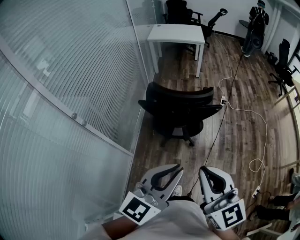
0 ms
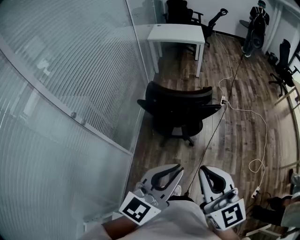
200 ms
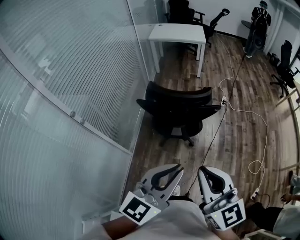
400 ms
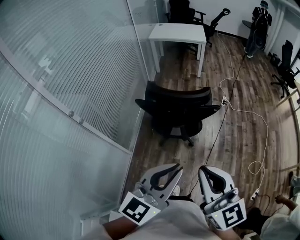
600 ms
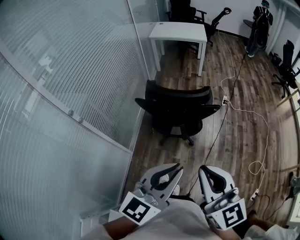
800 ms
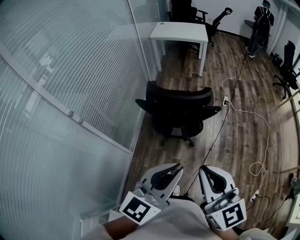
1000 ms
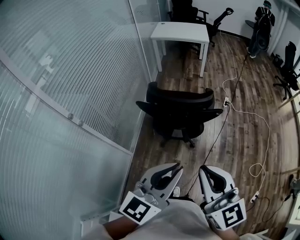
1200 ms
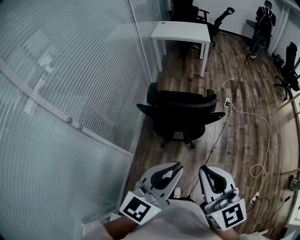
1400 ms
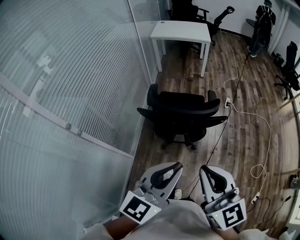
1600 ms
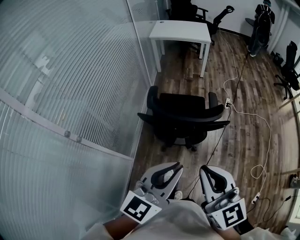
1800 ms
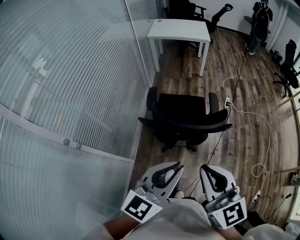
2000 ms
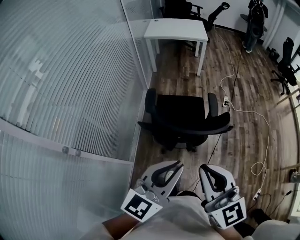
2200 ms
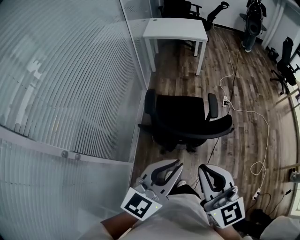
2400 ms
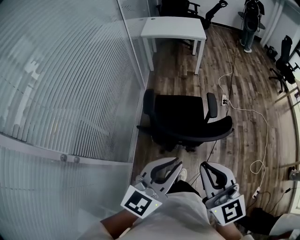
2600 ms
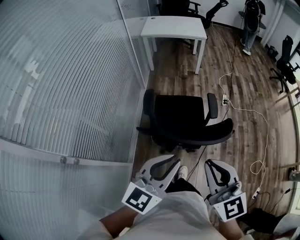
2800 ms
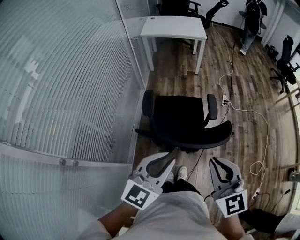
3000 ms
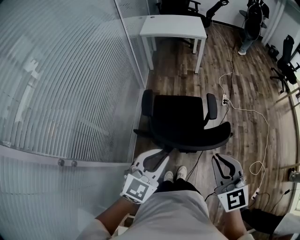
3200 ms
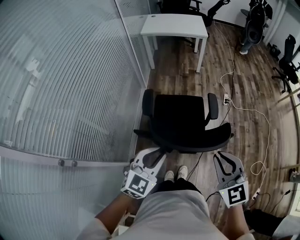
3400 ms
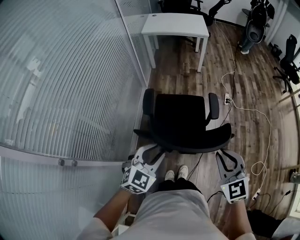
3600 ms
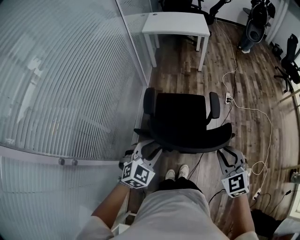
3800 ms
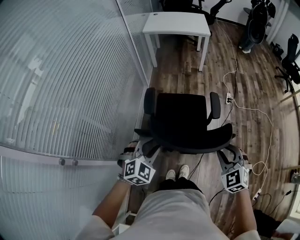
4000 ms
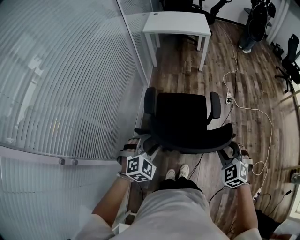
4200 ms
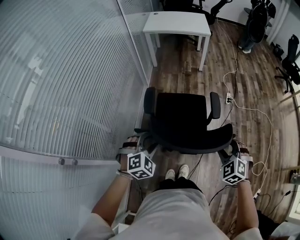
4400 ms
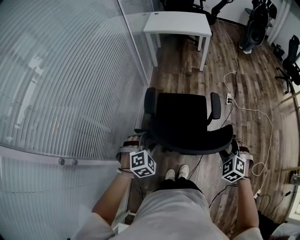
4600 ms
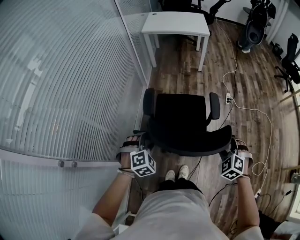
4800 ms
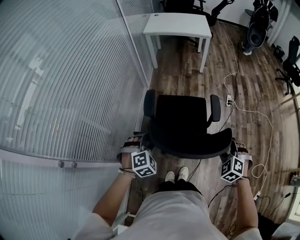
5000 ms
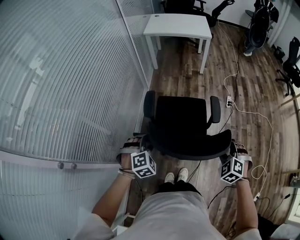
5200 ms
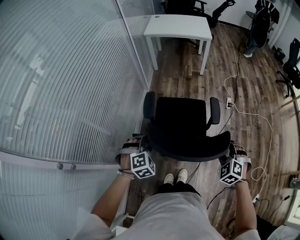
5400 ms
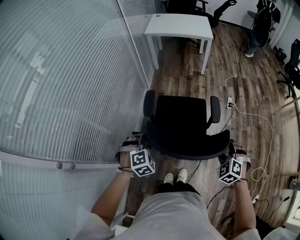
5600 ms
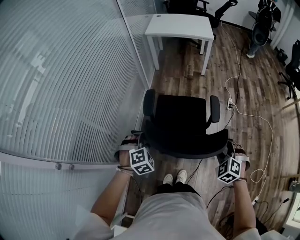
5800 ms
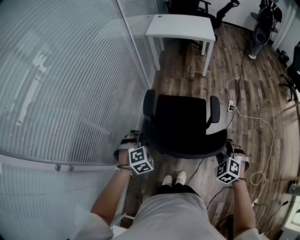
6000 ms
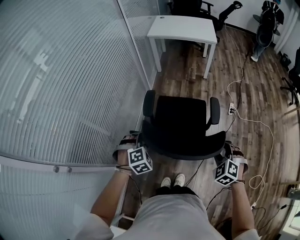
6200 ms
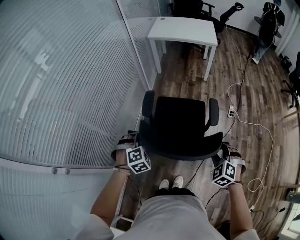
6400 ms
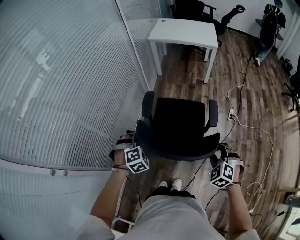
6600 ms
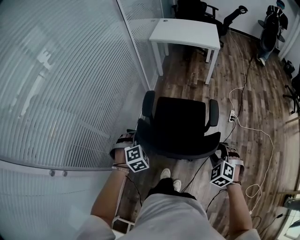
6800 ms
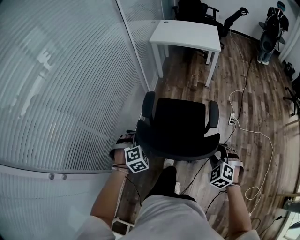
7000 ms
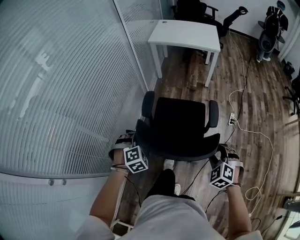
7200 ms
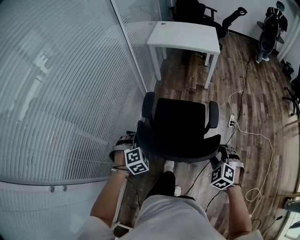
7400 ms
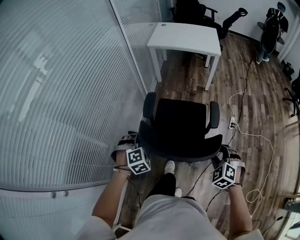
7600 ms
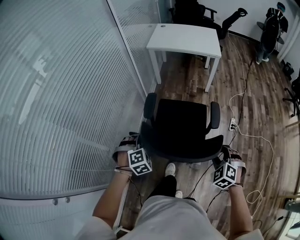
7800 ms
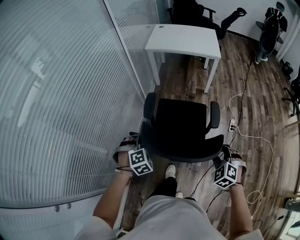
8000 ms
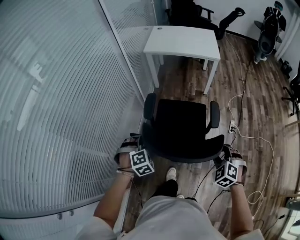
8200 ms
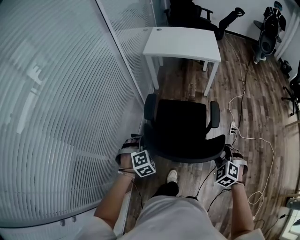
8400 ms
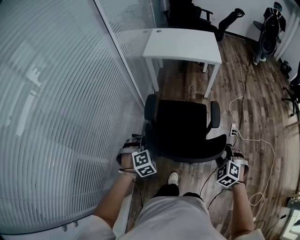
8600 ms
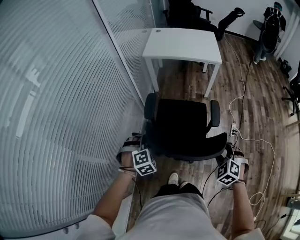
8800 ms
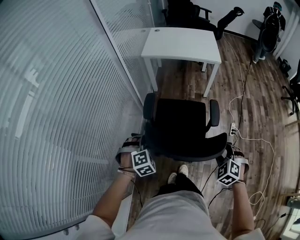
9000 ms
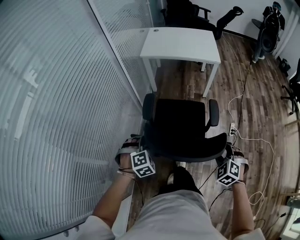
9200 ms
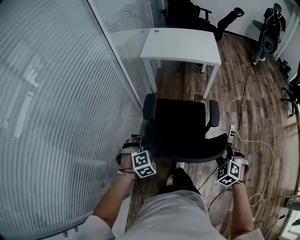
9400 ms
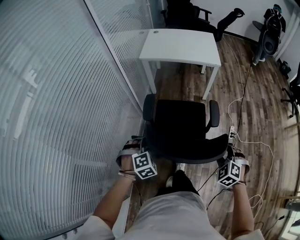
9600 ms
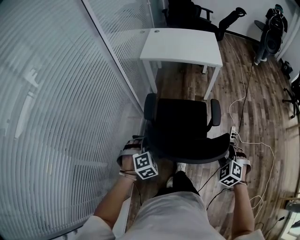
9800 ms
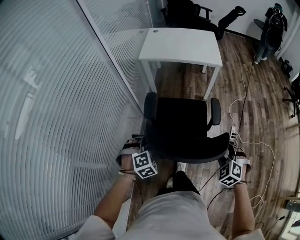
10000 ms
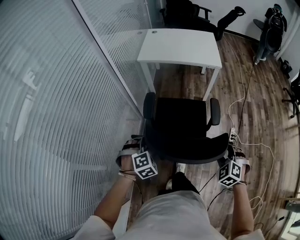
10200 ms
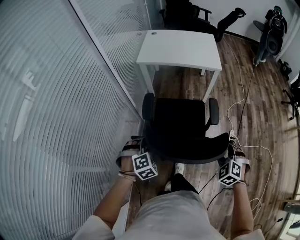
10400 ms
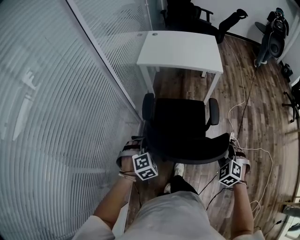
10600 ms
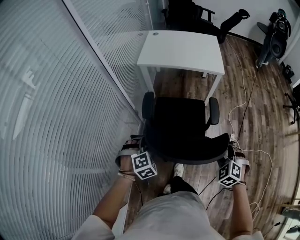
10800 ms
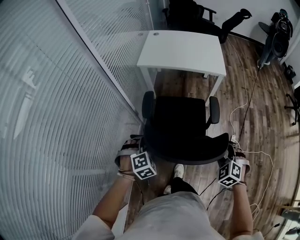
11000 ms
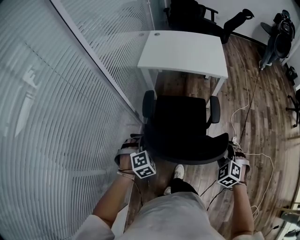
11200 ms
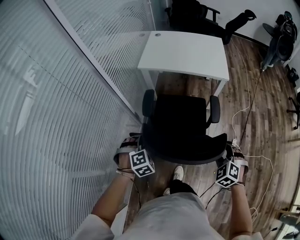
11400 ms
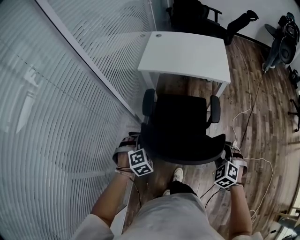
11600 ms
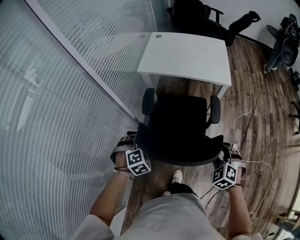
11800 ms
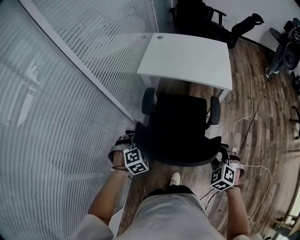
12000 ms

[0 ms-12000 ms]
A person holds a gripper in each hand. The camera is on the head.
0 ms to 1600 ms: Both grippers move forward, roughly 10 cm.
1600 ms to 3000 ms: The right gripper travels forward by approximately 15 cm. Meanwhile the left gripper goes approximately 20 cm forward and to the left.
3000 ms to 4400 ms: The right gripper heads downward, forward and to the right, covering roughly 20 cm, tilts its fingers about 30 degrees downward, and opens up; the left gripper travels downward and forward by approximately 20 cm, points its fingers about 40 degrees further downward, and opens its fingers.
4400 ms to 6000 ms: The two grippers go roughly 5 cm forward.
6000 ms to 7600 ms: Both grippers travel together forward, approximately 15 cm.
7600 ms to 9000 ms: The grippers both shift forward by roughly 15 cm.
9000 ms to 10400 ms: The two grippers go some 10 cm forward.
10400 ms to 12000 ms: Both grippers move forward, approximately 20 cm.

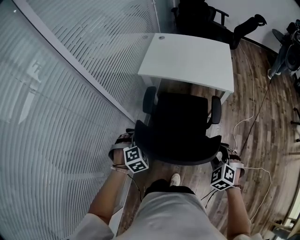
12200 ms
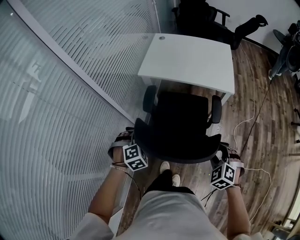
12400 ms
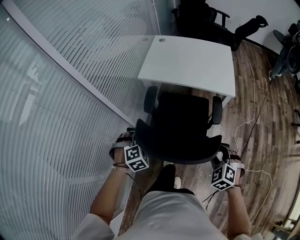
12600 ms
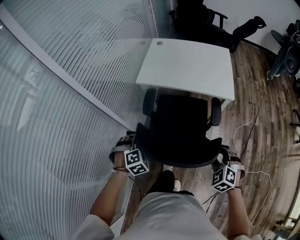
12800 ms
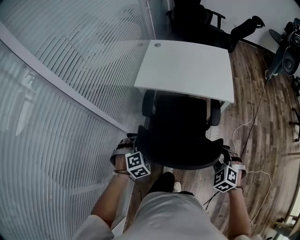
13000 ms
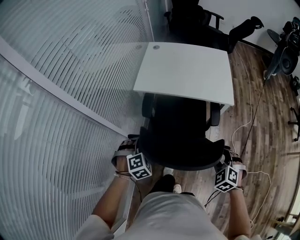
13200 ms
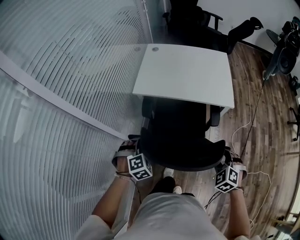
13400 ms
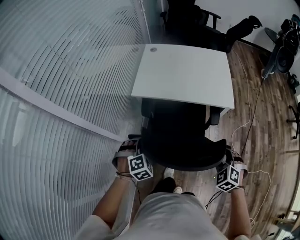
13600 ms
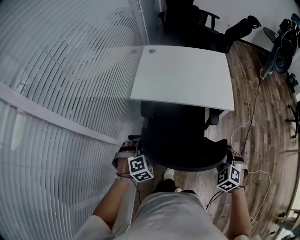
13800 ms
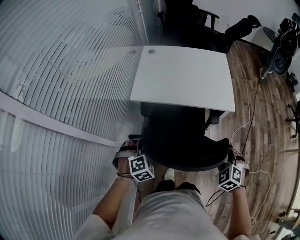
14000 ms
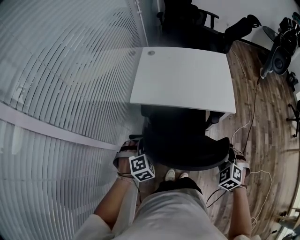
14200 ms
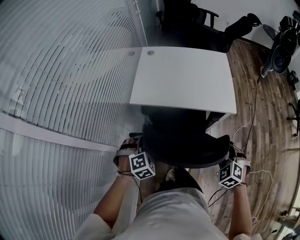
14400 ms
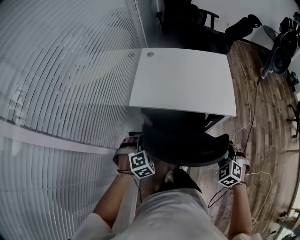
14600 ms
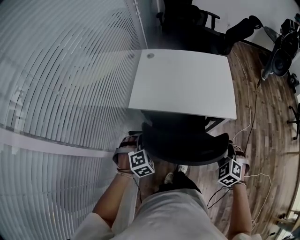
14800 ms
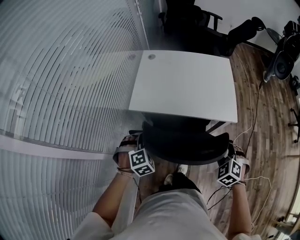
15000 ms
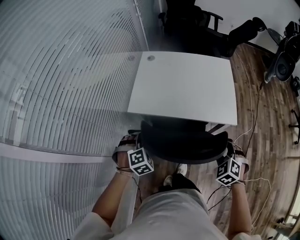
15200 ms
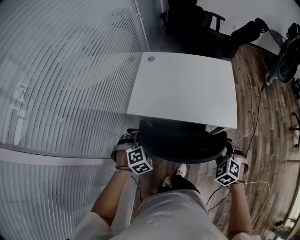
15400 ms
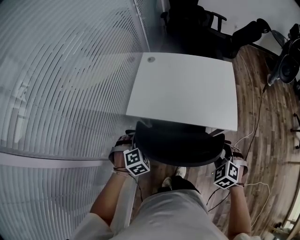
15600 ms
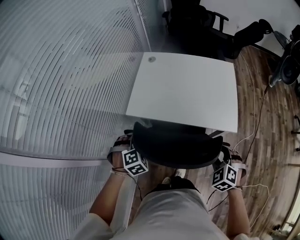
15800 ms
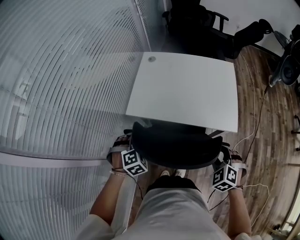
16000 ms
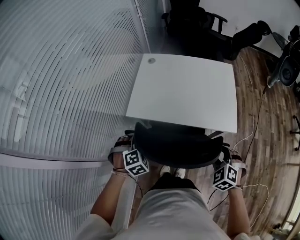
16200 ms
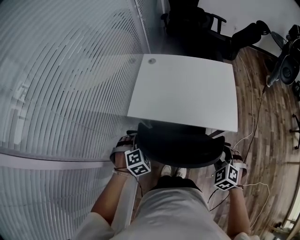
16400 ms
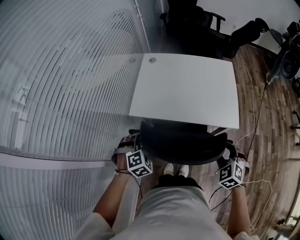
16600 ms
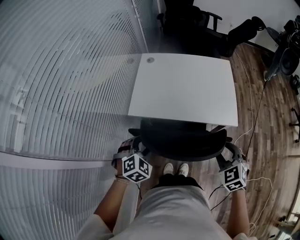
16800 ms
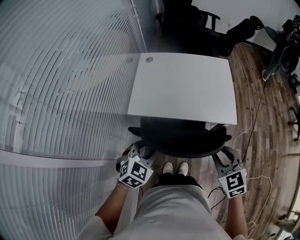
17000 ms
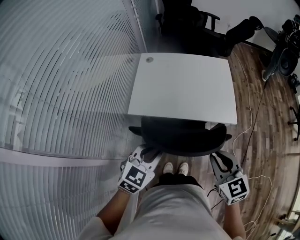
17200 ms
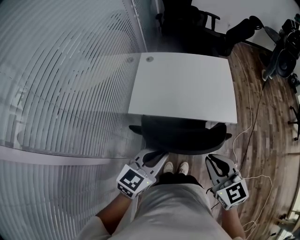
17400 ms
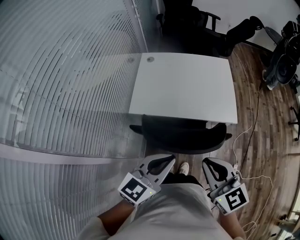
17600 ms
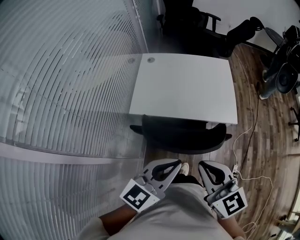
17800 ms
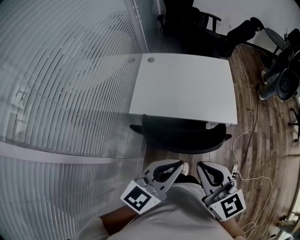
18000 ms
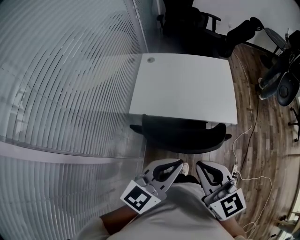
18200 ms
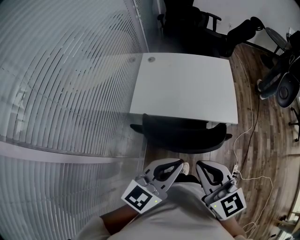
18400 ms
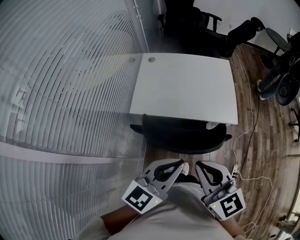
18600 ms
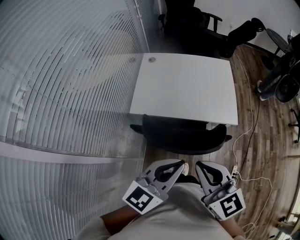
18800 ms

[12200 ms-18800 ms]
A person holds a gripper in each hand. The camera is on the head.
12200 ms to 13800 ms: Both grippers travel together forward, roughly 20 cm.
13800 ms to 15400 ms: The two grippers go approximately 15 cm forward.
15400 ms to 17200 ms: The left gripper moves upward and backward, some 15 cm, rotates approximately 50 degrees, and closes. Meanwhile the right gripper travels upward, to the left and backward by about 15 cm, rotates about 50 degrees, and closes.
17200 ms to 18800 ms: The left gripper shifts some 15 cm upward, to the right and backward, and rotates about 30 degrees; the right gripper heads upward and to the left, covering some 10 cm.

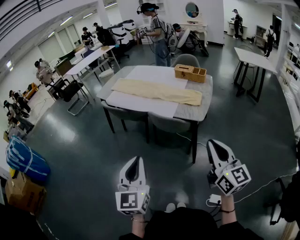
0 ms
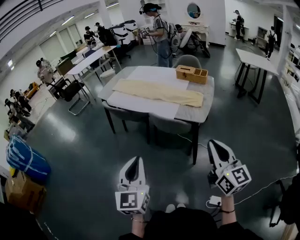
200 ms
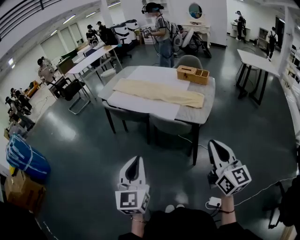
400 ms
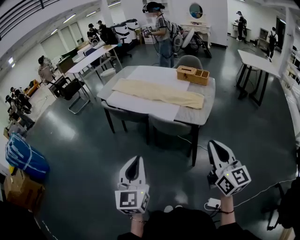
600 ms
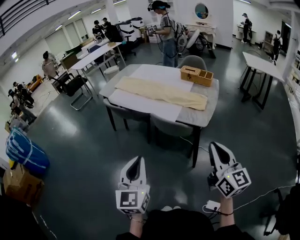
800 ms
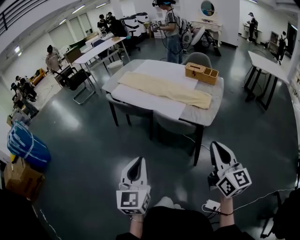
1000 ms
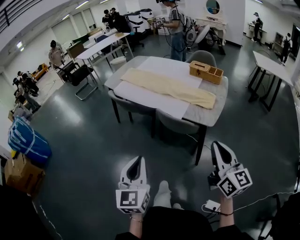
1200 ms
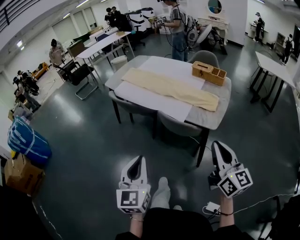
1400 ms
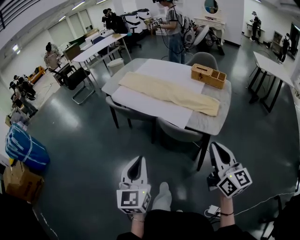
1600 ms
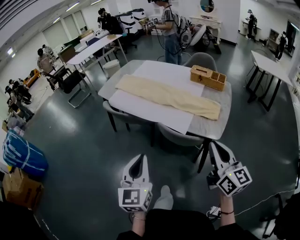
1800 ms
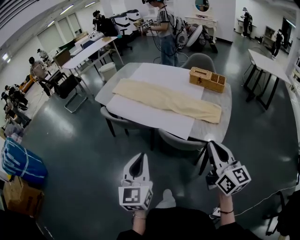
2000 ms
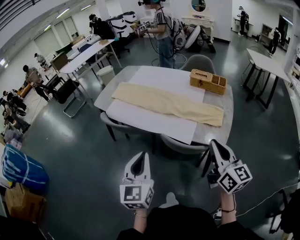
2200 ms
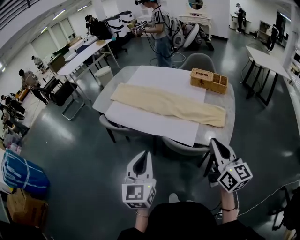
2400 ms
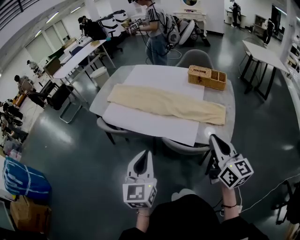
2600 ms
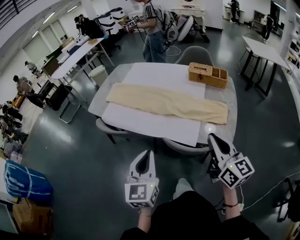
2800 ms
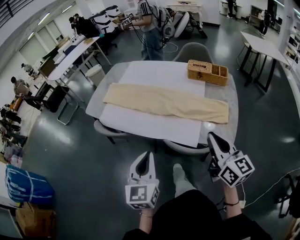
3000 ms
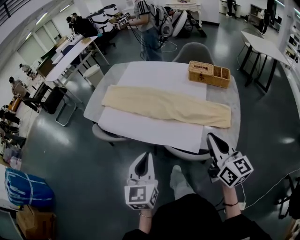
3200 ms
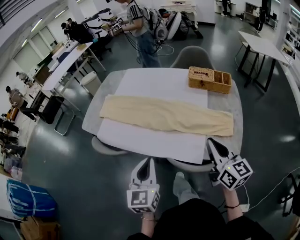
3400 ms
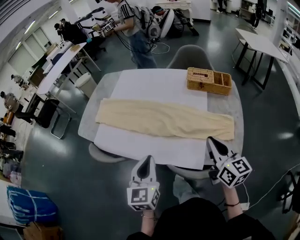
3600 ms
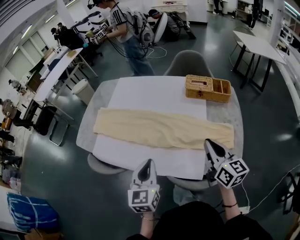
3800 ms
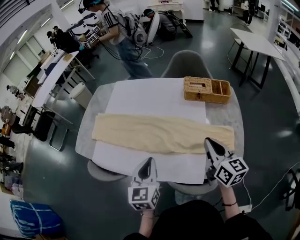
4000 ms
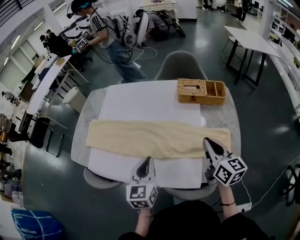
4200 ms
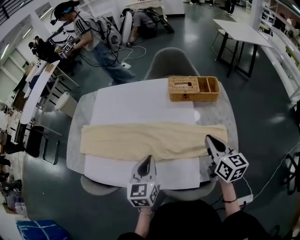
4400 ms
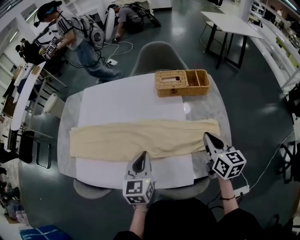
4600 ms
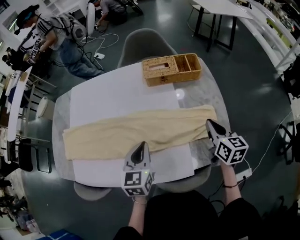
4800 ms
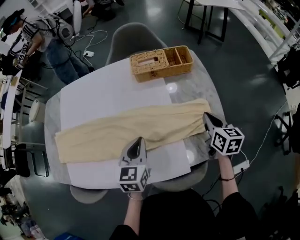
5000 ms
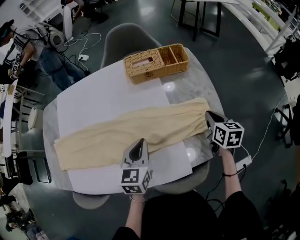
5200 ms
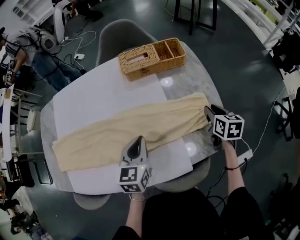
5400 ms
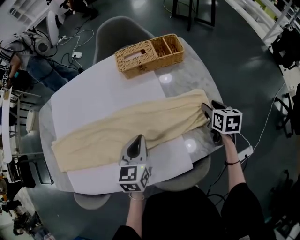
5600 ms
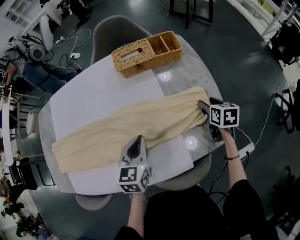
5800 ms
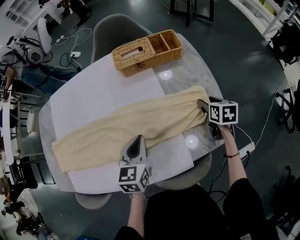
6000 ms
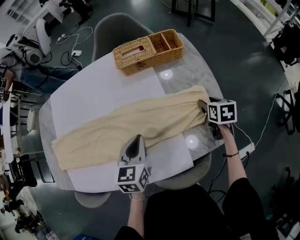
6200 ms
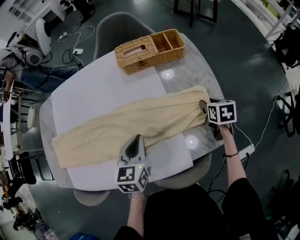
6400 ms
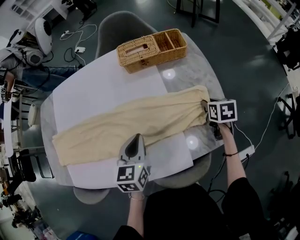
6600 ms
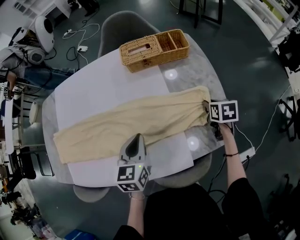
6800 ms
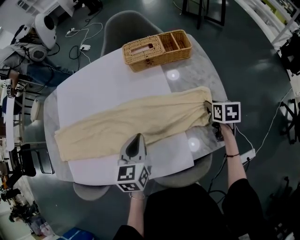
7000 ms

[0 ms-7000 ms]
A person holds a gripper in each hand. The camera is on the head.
0 ms to 1400 ms: Both grippers move forward, some 10 cm.
1400 ms to 2800 ms: Both grippers move forward, approximately 25 cm.
2800 ms to 4200 ms: Both grippers move forward, about 25 cm.
4200 ms to 5600 ms: The right gripper is displaced downward by about 20 cm, angles its fingers downward, by about 30 degrees, and opens its fingers; the left gripper moves roughly 15 cm, and turns by roughly 30 degrees.
5600 ms to 7000 ms: The right gripper closes up.
